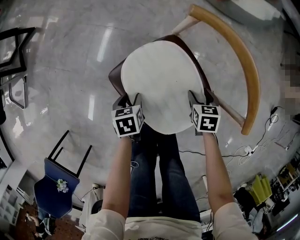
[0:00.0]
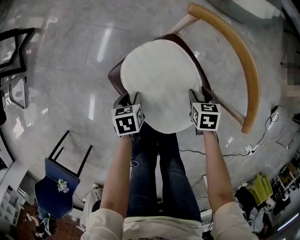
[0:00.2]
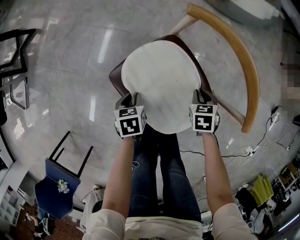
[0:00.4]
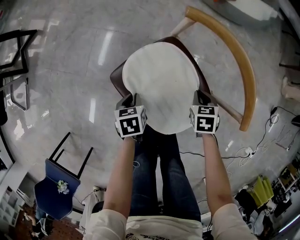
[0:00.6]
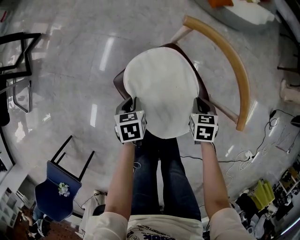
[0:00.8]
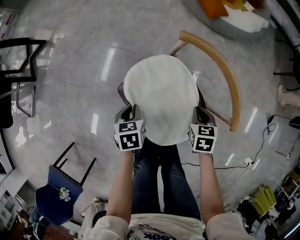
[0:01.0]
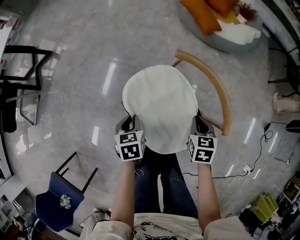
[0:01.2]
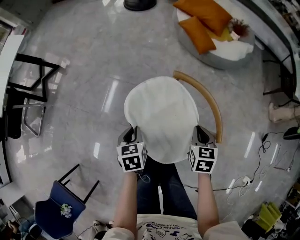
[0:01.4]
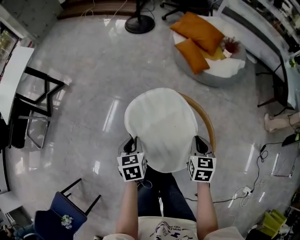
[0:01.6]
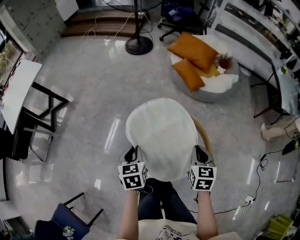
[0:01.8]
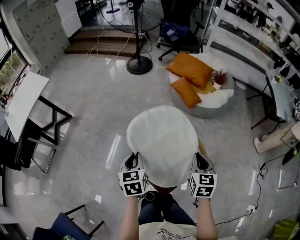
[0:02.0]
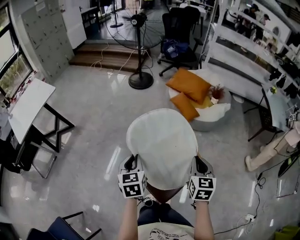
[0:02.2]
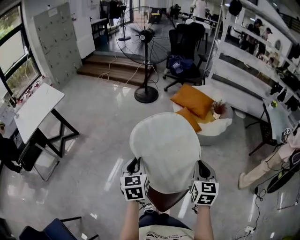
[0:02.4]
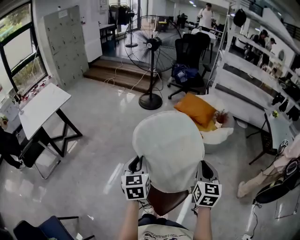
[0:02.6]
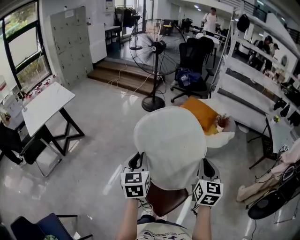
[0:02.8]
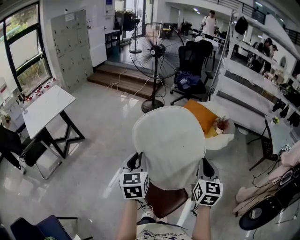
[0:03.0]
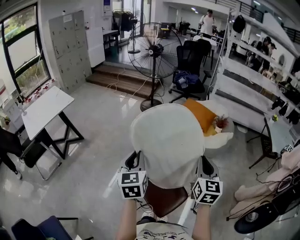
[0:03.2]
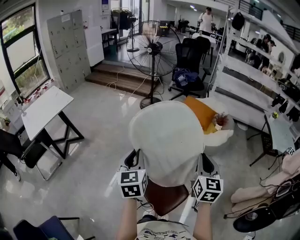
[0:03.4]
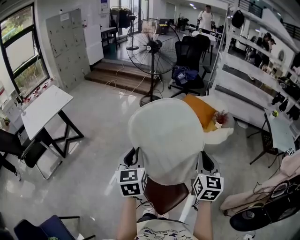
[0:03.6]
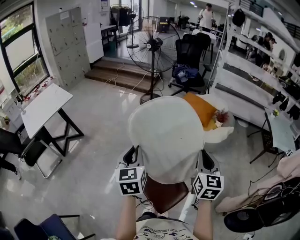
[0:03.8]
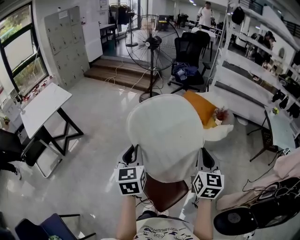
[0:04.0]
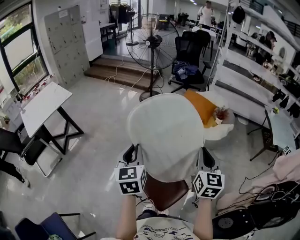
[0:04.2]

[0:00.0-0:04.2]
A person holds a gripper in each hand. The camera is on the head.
0:00.0 to 0:01.4: The two grippers go about 30 cm upward. The right gripper closes up. Meanwhile the left gripper closes up.
0:01.4 to 0:02.8: Both grippers move upward, approximately 50 cm. The right gripper tilts its fingers about 40 degrees upward. Meanwhile the left gripper angles its fingers upward, by some 40 degrees.
0:02.8 to 0:04.2: The grippers stay close to where they were, moving slightly.

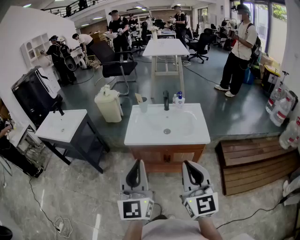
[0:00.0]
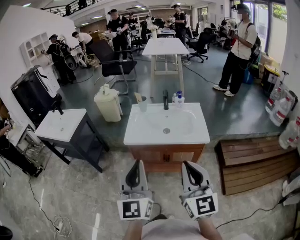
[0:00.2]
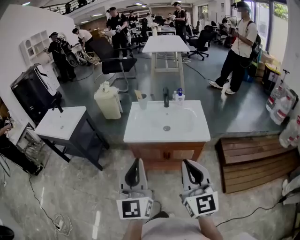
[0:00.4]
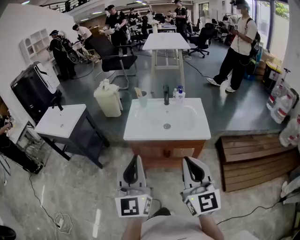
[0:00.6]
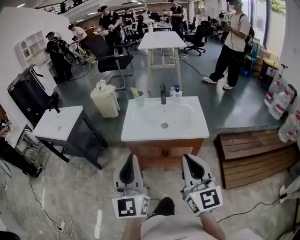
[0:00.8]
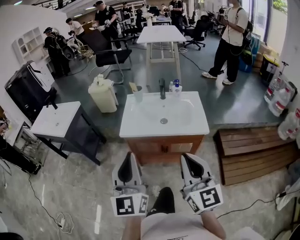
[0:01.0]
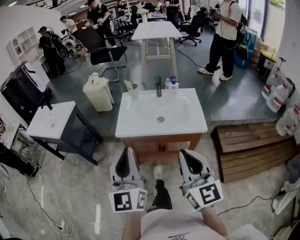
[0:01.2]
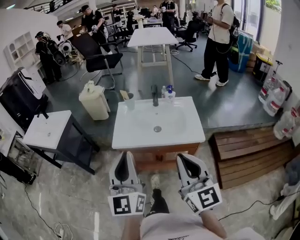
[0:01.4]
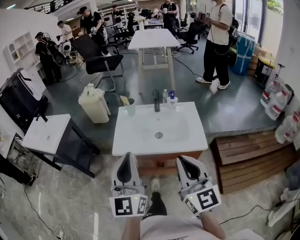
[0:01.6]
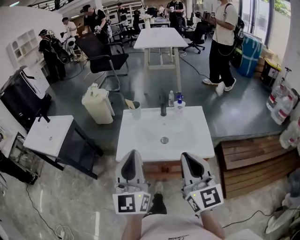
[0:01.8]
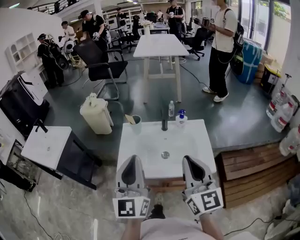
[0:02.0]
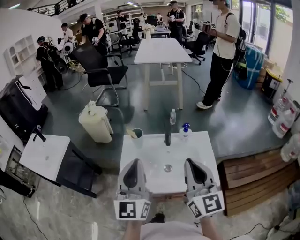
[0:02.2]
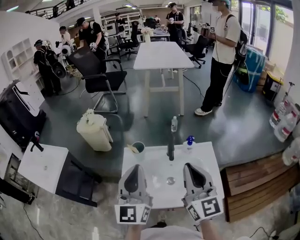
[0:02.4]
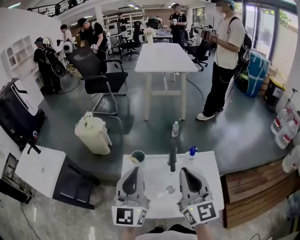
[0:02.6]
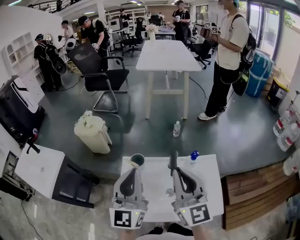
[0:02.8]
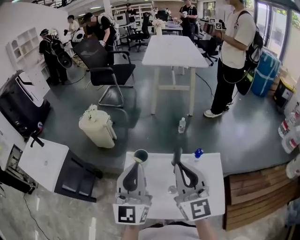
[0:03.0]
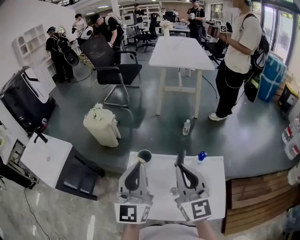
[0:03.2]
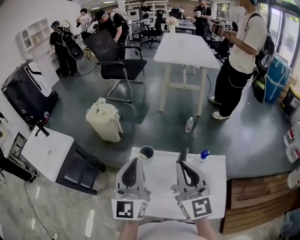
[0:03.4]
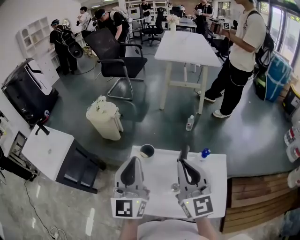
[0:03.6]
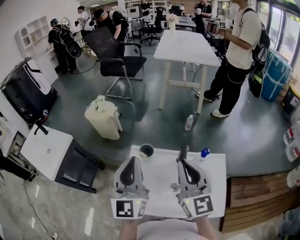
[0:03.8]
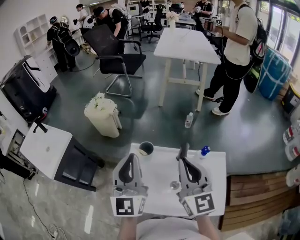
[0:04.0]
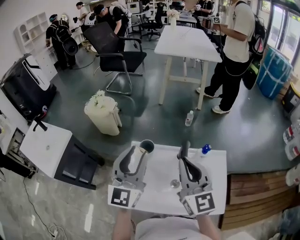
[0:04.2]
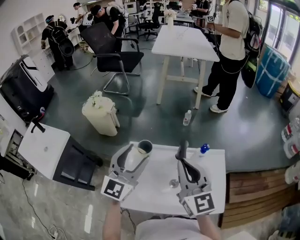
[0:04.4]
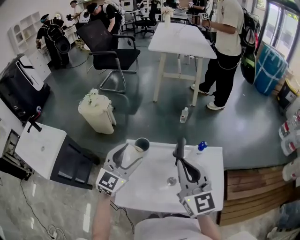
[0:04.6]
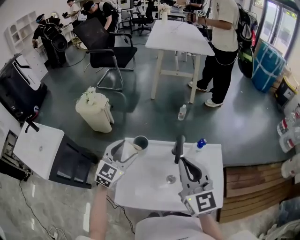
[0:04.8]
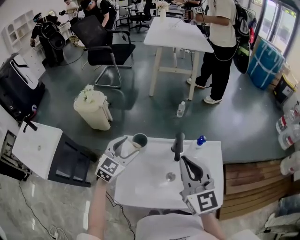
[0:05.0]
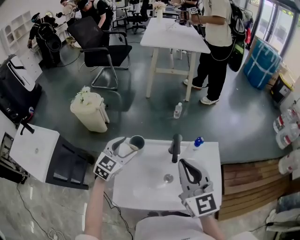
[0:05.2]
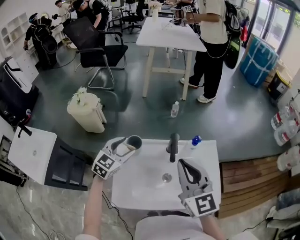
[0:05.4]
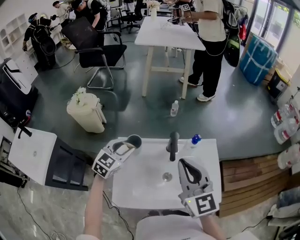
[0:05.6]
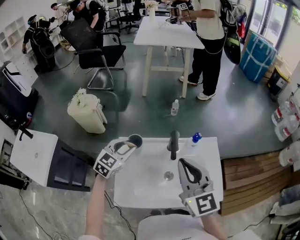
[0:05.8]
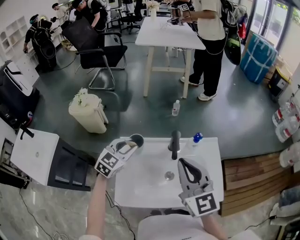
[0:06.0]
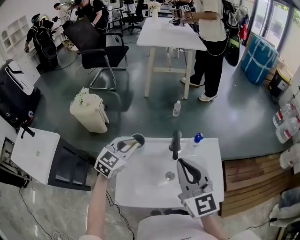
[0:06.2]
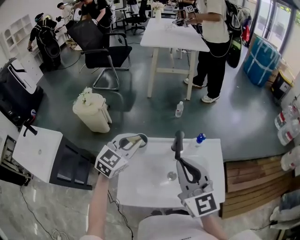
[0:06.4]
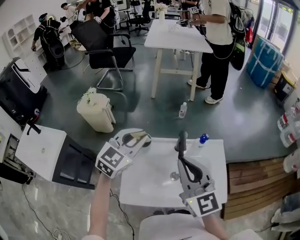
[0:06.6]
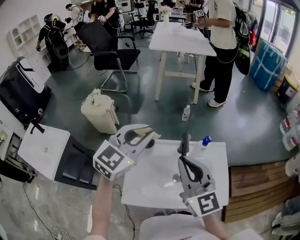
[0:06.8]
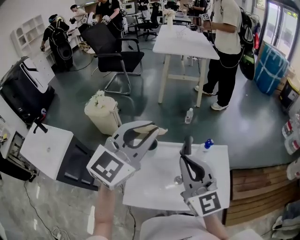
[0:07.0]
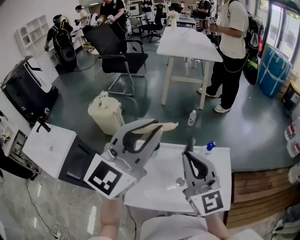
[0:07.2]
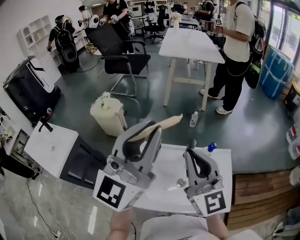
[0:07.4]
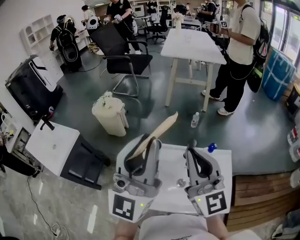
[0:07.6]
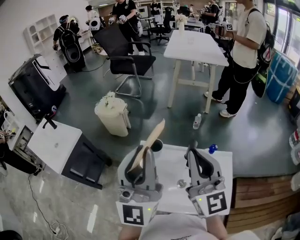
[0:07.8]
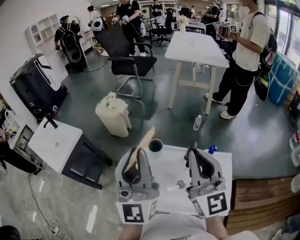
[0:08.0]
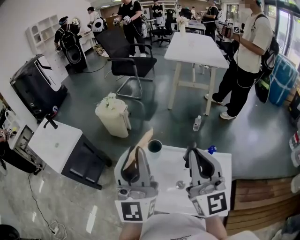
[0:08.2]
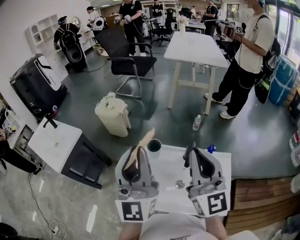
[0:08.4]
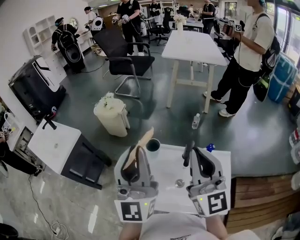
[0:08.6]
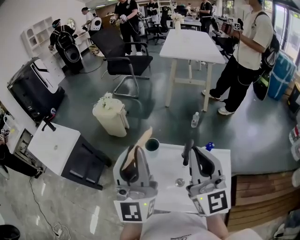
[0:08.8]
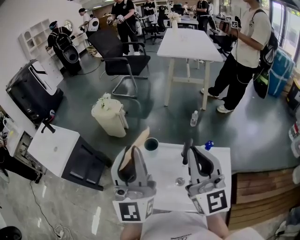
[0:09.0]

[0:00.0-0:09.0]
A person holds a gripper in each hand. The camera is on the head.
0:00.0 to 0:01.6: The two grippers go approximately 15 cm forward.
0:01.6 to 0:03.0: The two grippers go some 35 cm forward.
0:03.0 to 0:04.4: The left gripper shifts approximately 5 cm downward, turns by some 20 degrees, and opens.
0:04.4 to 0:06.0: The left gripper moves downward and forward, some 15 cm, swivels about 30 degrees, and closes.
0:06.0 to 0:07.6: The left gripper is displaced upward and backward by roughly 35 cm, and tilts its fingers roughly 60 degrees upward. Meanwhile the right gripper goes some 10 cm upward.
0:07.6 to 0:09.0: The left gripper changes place by roughly 5 cm.

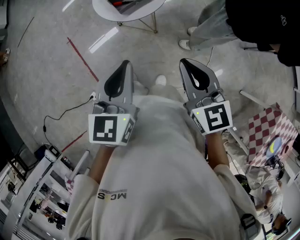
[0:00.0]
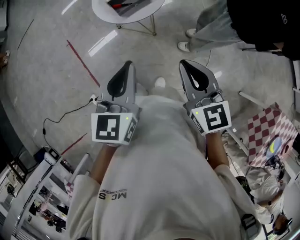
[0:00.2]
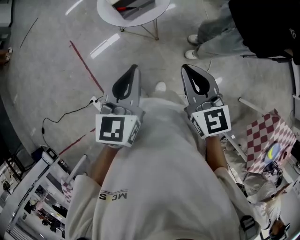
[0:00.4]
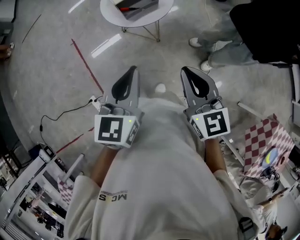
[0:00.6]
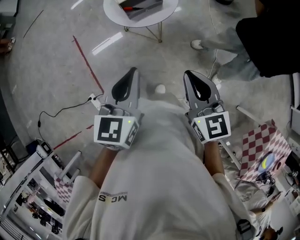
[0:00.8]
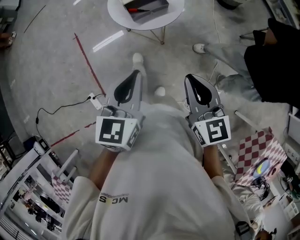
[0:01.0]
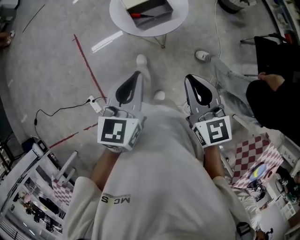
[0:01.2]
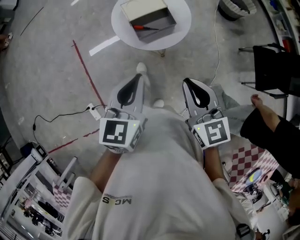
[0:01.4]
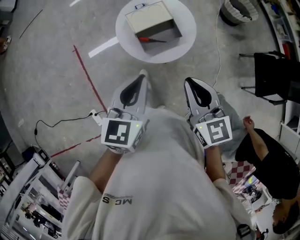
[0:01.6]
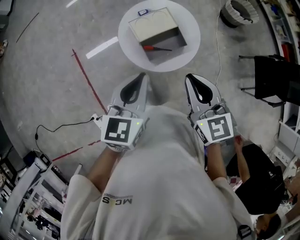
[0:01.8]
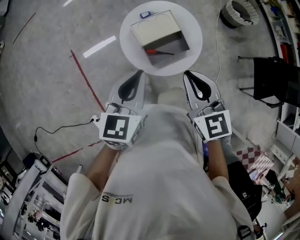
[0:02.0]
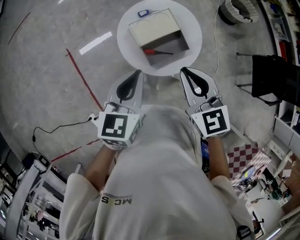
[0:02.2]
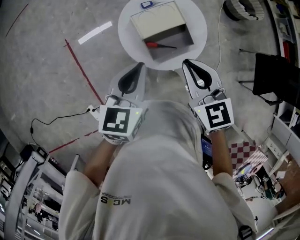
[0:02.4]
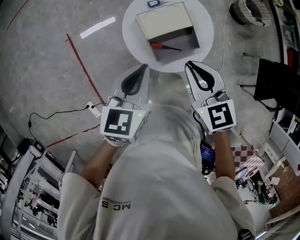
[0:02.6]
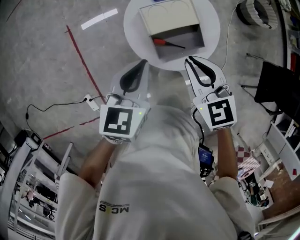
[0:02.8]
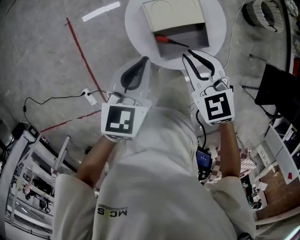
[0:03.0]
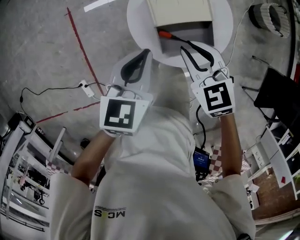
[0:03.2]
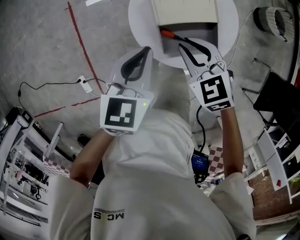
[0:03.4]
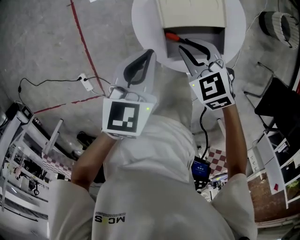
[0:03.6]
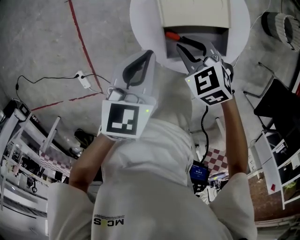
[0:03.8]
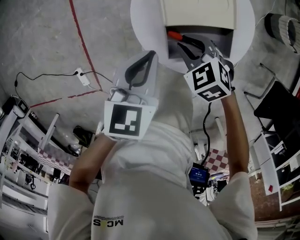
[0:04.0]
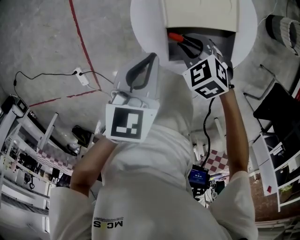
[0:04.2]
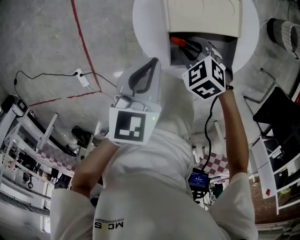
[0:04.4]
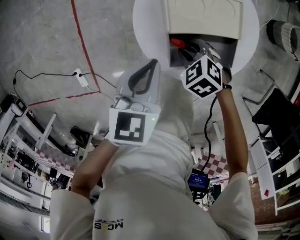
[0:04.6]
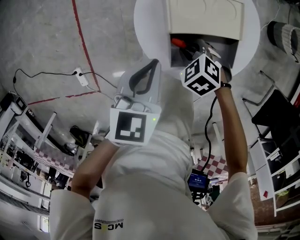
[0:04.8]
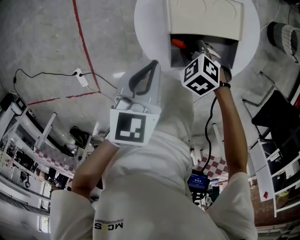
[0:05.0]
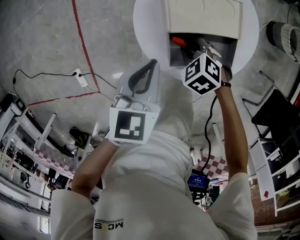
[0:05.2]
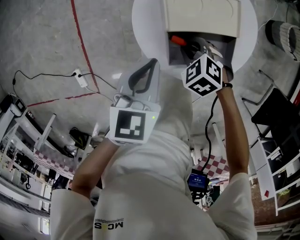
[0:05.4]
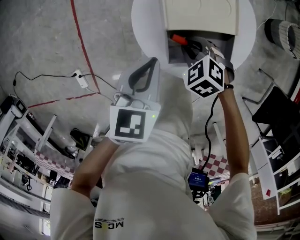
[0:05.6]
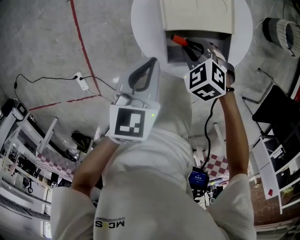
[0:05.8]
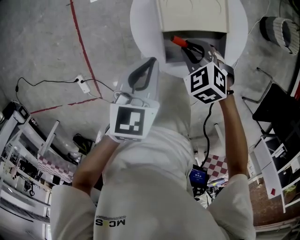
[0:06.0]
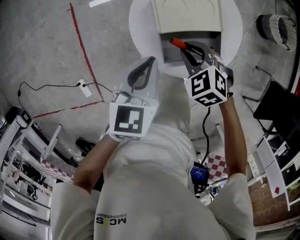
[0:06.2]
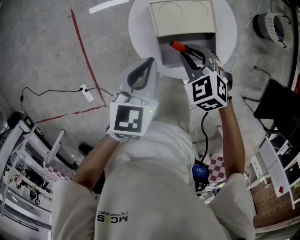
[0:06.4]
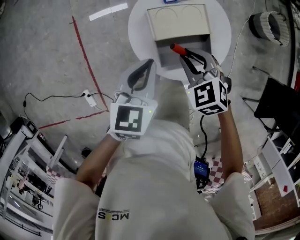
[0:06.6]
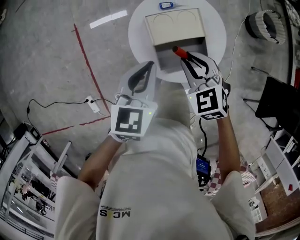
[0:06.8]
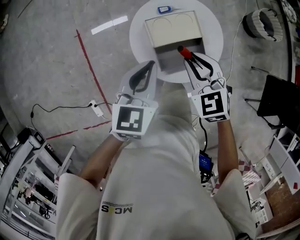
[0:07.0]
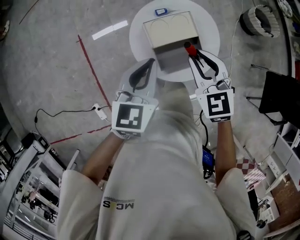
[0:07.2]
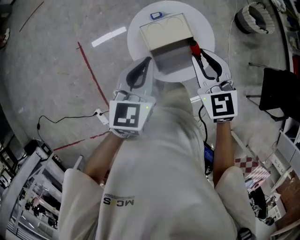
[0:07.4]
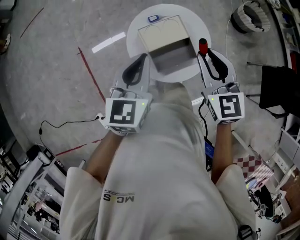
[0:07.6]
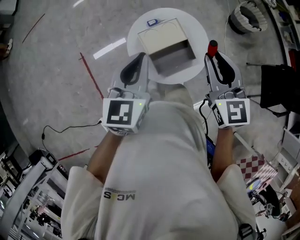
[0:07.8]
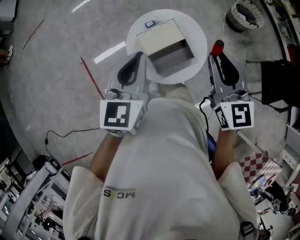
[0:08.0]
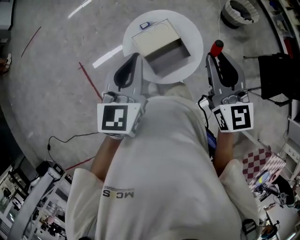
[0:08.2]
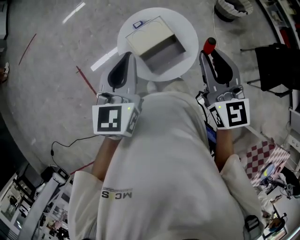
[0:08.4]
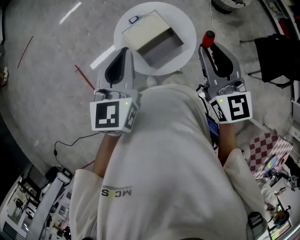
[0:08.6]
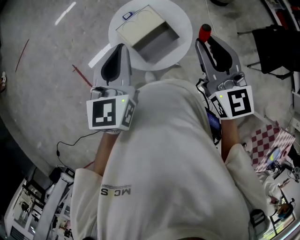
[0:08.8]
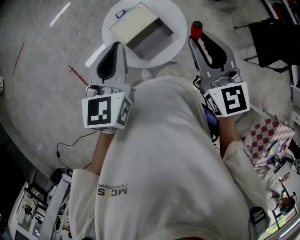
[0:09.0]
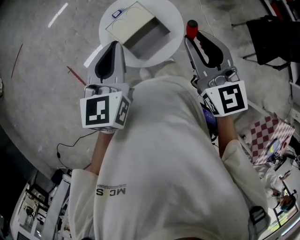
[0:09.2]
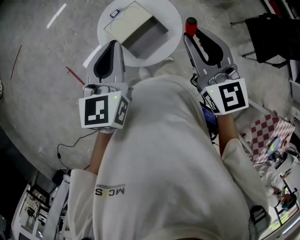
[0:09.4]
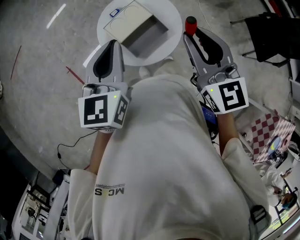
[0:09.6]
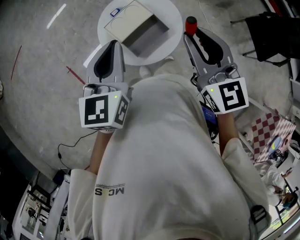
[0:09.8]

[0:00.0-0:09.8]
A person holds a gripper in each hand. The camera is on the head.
0:00.0 to 0:01.4: The grippers both shift forward and to the left by about 20 cm.
0:01.4 to 0:02.8: The left gripper goes roughly 30 cm forward; the right gripper travels forward and to the left by some 35 cm, and swivels some 20 degrees.
0:02.8 to 0:04.2: The right gripper heads downward, covering approximately 30 cm, and swivels about 40 degrees. The left gripper goes some 20 cm downward.
0:04.2 to 0:05.6: The grippers move only a little.
0:05.6 to 0:07.0: The right gripper is displaced upward by roughly 25 cm, and rotates roughly 40 degrees. Meanwhile the left gripper goes approximately 20 cm upward.
0:07.0 to 0:08.4: The left gripper heads upward, covering roughly 15 cm. The right gripper is displaced upward, to the right and backward by approximately 25 cm, and tilts its fingers some 30 degrees upward.
0:08.4 to 0:09.8: The left gripper shifts by about 5 cm.
